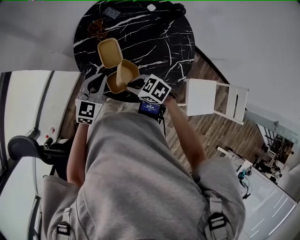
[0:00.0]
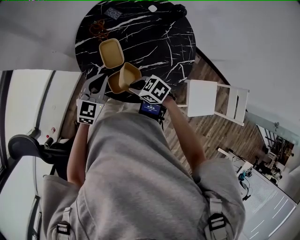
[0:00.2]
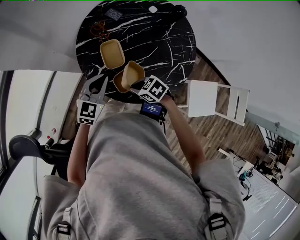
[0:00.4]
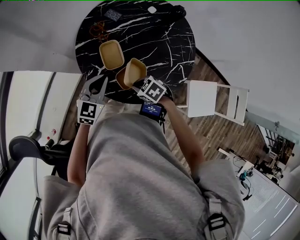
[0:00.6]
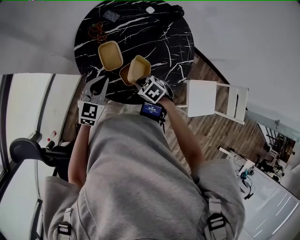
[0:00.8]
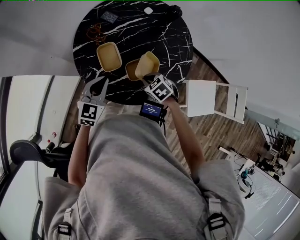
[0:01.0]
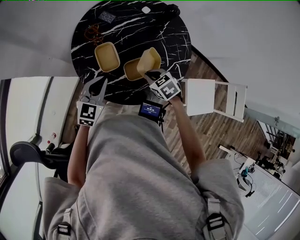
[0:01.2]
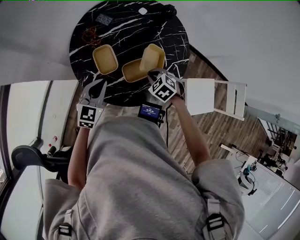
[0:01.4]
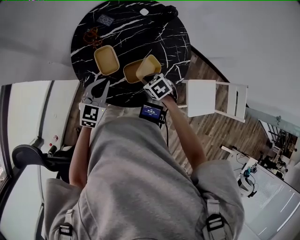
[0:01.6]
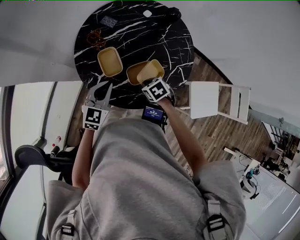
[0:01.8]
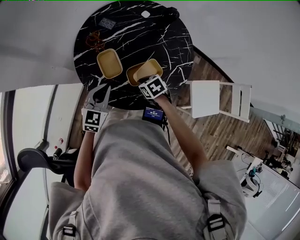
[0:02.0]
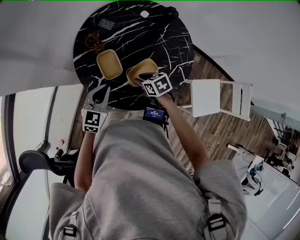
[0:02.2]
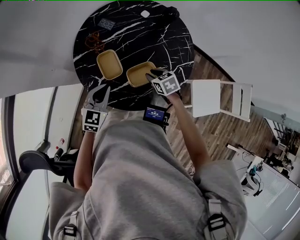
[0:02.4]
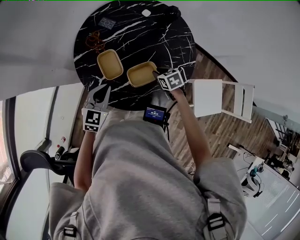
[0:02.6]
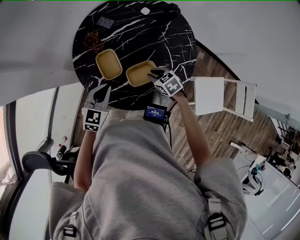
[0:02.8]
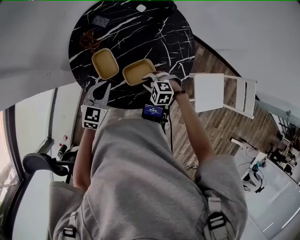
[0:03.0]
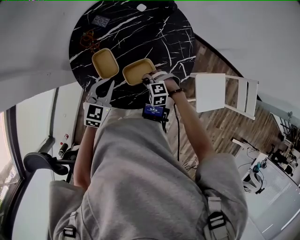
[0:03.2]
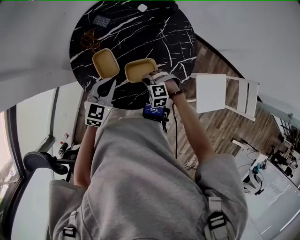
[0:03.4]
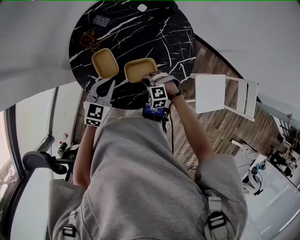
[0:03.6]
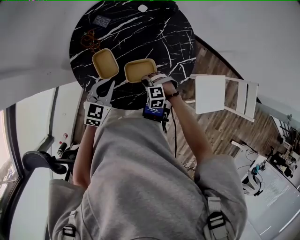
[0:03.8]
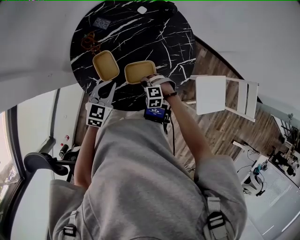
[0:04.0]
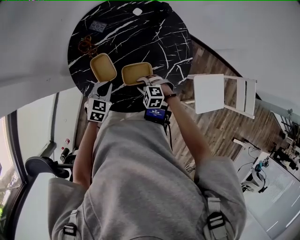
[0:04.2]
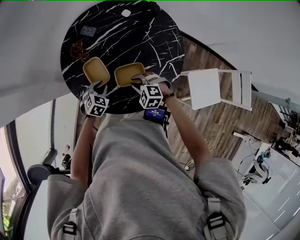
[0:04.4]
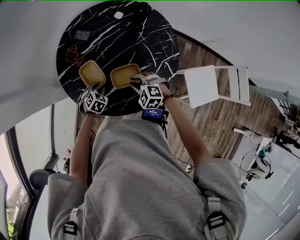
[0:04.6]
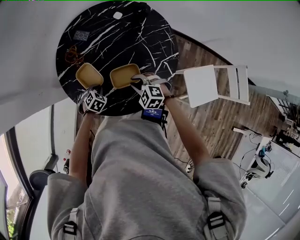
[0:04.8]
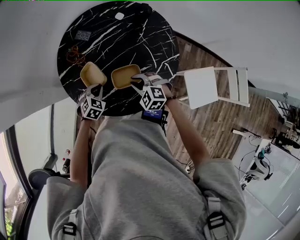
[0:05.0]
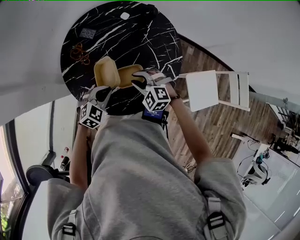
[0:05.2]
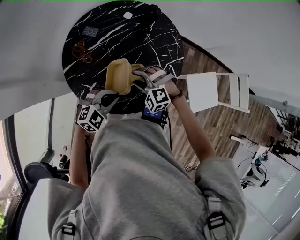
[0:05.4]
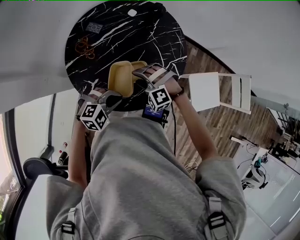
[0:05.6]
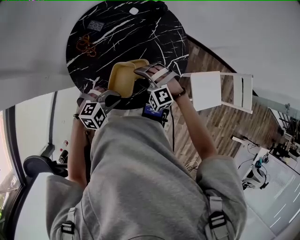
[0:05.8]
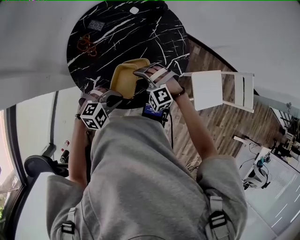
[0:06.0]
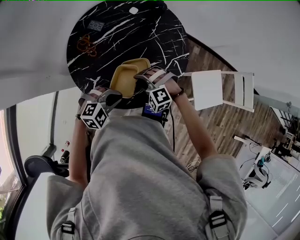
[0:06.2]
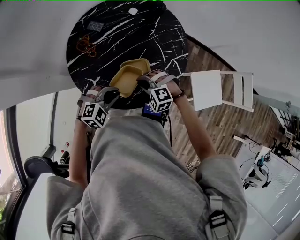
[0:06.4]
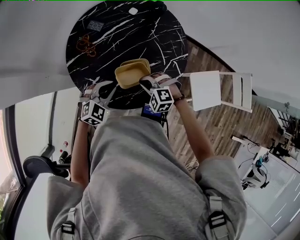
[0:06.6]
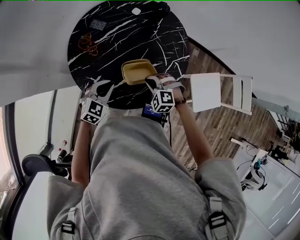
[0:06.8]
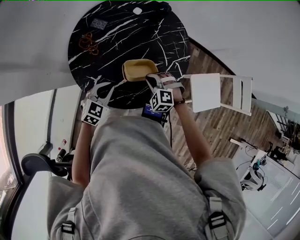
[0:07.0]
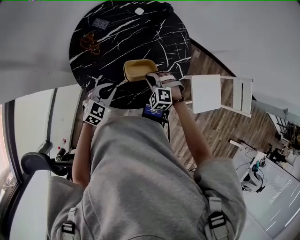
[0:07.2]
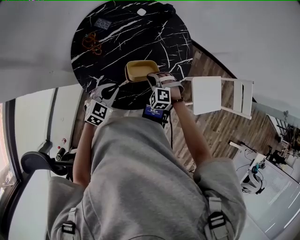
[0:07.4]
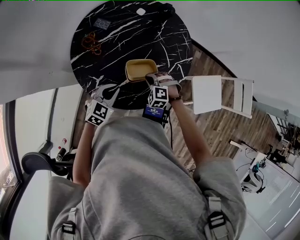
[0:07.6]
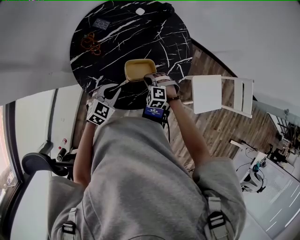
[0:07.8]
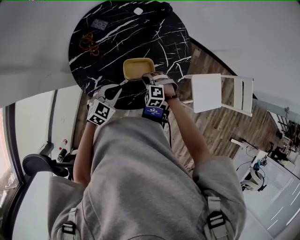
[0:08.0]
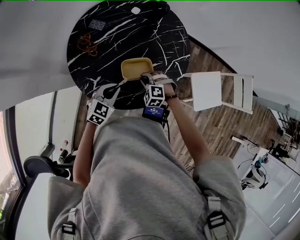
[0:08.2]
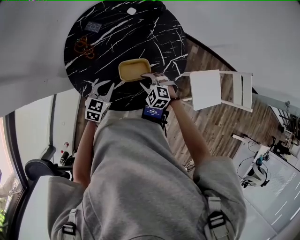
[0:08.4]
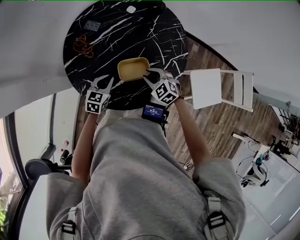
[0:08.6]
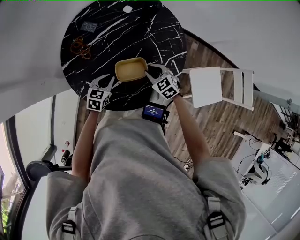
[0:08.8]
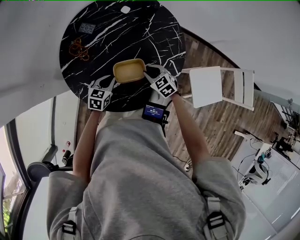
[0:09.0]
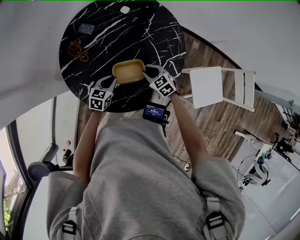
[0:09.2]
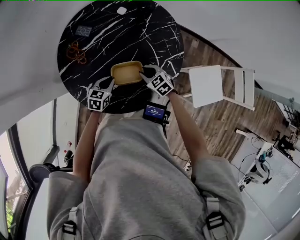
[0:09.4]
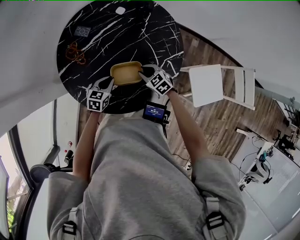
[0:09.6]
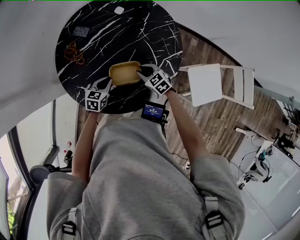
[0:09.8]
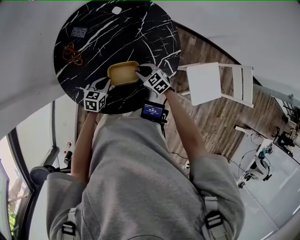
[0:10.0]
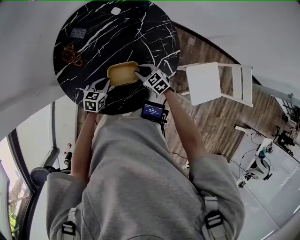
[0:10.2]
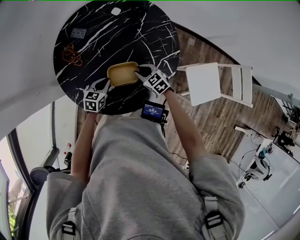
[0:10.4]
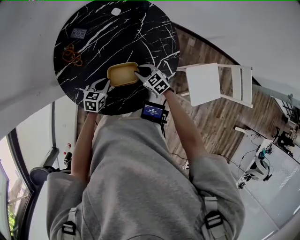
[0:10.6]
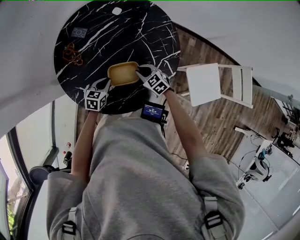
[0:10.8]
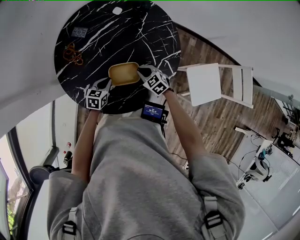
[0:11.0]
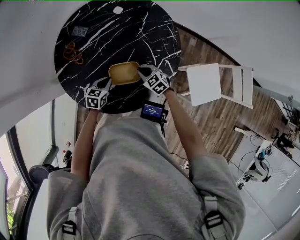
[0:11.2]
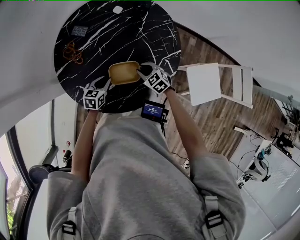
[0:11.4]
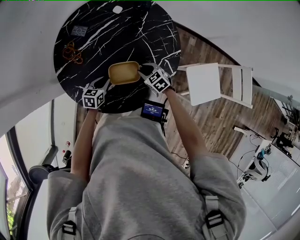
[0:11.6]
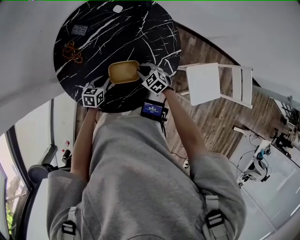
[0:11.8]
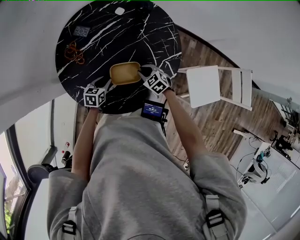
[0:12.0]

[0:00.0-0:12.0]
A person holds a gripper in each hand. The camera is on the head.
0:00.0 to 0:01.6: The right gripper shifts by roughly 15 cm, and changes its angle by approximately 30 degrees.
0:01.6 to 0:03.0: The right gripper swings left and right, roughly 10 cm each way, with 2 reversals, and twists about 40 degrees counterclockwise, seen from behind.
0:03.0 to 0:04.4: The left gripper moves downward, roughly 15 cm, rotates about 30 degrees, and opens up.
0:04.4 to 0:06.0: The right gripper goes roughly 5 cm upward, changes its angle by approximately 30 degrees, and opens up. Meanwhile the left gripper shifts by about 20 cm, and changes its angle by about 50 degrees.
0:06.0 to 0:07.6: The right gripper is displaced downward by about 10 cm, turns by roughly 30 degrees, and closes its fingers. Meanwhile the left gripper is displaced forward by approximately 5 cm, and changes its angle by approximately 40 degrees.
0:07.6 to 0:09.0: The left gripper goes about 10 cm downward and forward, and turns by some 30 degrees, while the right gripper is displaced to the right and forward by approximately 10 cm, rolls clockwise, seen from behind, by roughly 50 degrees, and opens up.
0:09.0 to 0:10.4: The grippers make only small movements.
0:10.4 to 0:12.0: The left gripper opens its fingers.

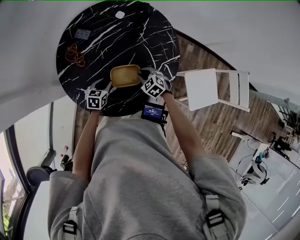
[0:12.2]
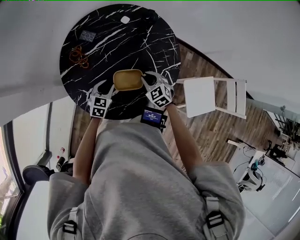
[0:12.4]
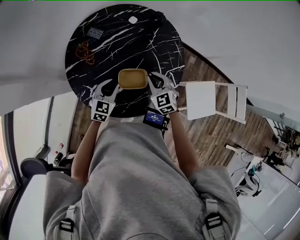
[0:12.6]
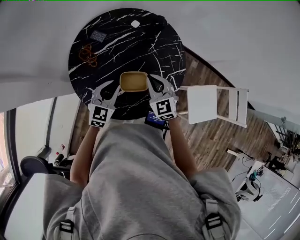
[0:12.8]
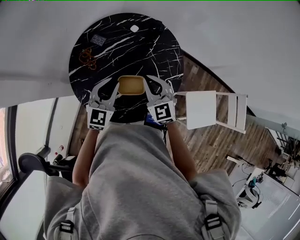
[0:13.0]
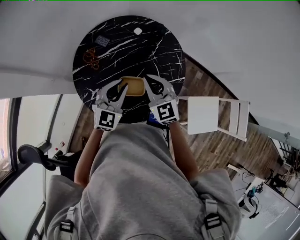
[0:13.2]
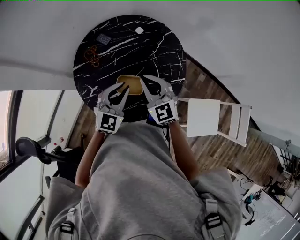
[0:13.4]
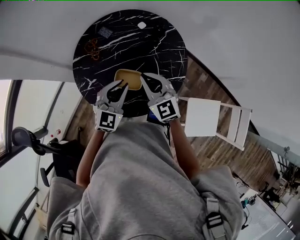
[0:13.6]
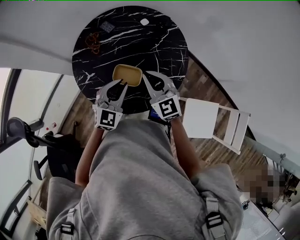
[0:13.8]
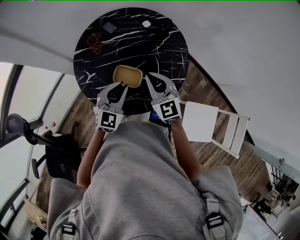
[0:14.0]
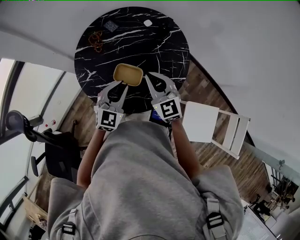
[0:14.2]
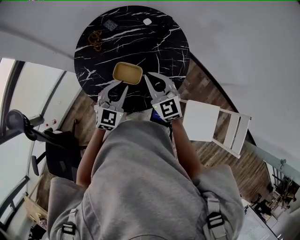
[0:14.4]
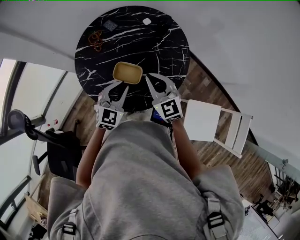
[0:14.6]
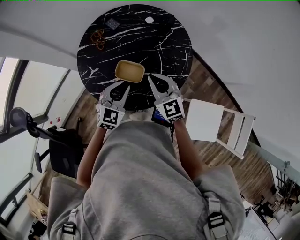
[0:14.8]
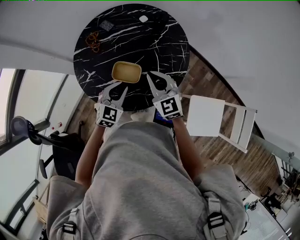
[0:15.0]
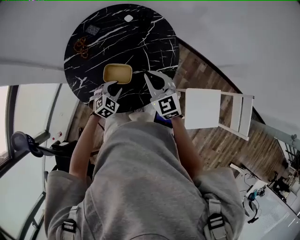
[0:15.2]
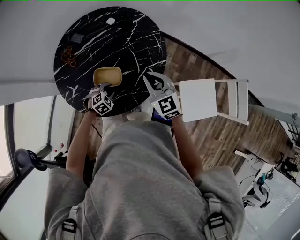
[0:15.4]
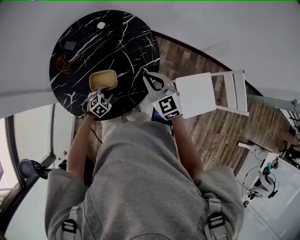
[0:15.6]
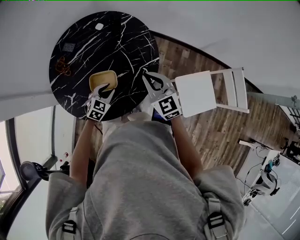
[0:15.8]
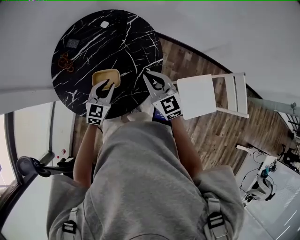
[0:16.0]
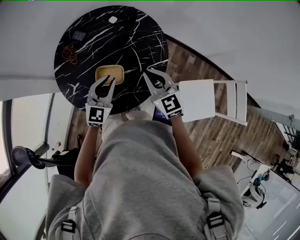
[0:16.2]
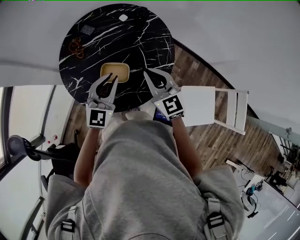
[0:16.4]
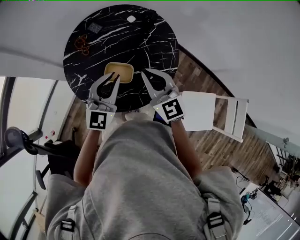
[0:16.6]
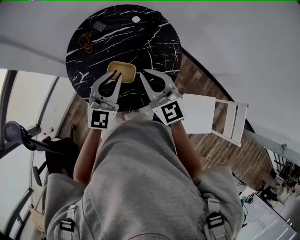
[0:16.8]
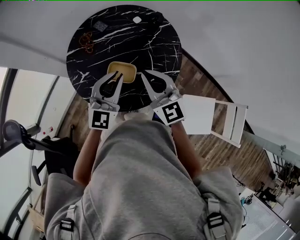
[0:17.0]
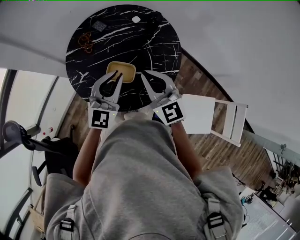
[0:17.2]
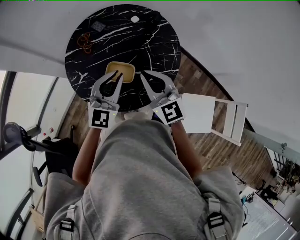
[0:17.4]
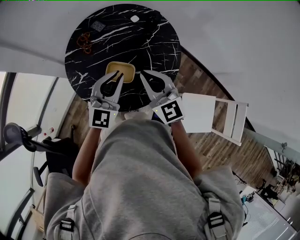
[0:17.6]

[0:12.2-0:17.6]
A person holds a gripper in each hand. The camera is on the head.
0:12.2 to 0:13.6: The grippers both shift upward by approximately 30 cm. The left gripper swivels approximately 40 degrees; the right gripper points its fingers approximately 40 degrees further upward.
0:13.6 to 0:15.0: The left gripper goes roughly 10 cm downward. Meanwhile the right gripper ends up about 5 cm from where it was.
0:15.0 to 0:16.2: The right gripper is displaced to the right by roughly 5 cm, while the left gripper reaches roughly 20 cm downward, then returns.
0:16.2 to 0:17.6: The left gripper is displaced upward by approximately 10 cm. Meanwhile the right gripper moves to the left and upward, roughly 10 cm.

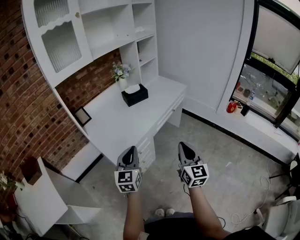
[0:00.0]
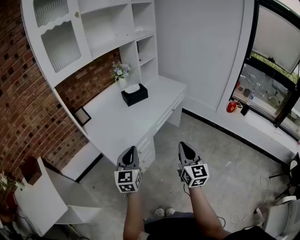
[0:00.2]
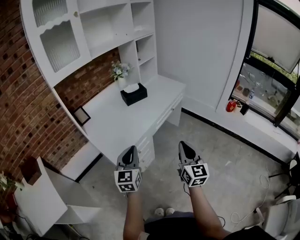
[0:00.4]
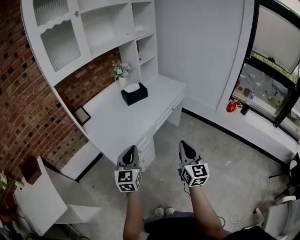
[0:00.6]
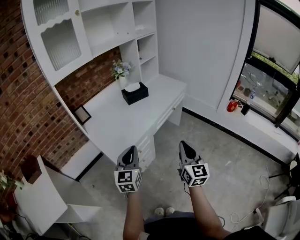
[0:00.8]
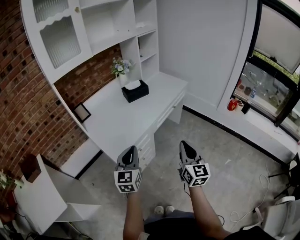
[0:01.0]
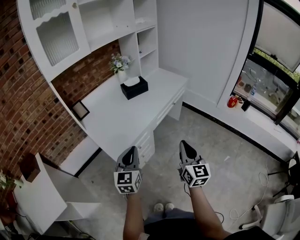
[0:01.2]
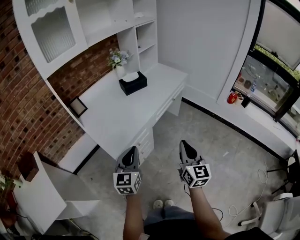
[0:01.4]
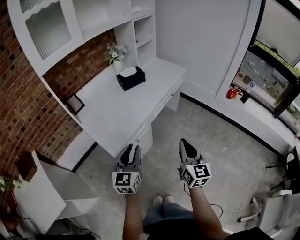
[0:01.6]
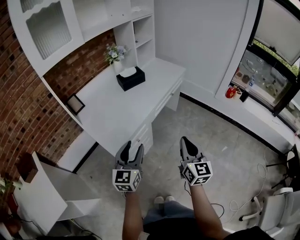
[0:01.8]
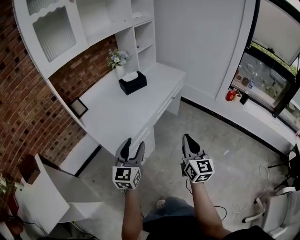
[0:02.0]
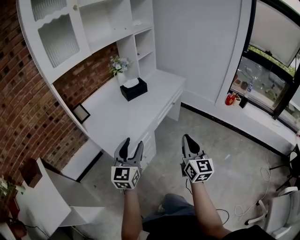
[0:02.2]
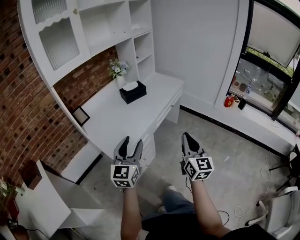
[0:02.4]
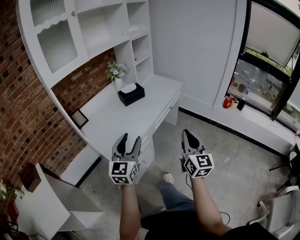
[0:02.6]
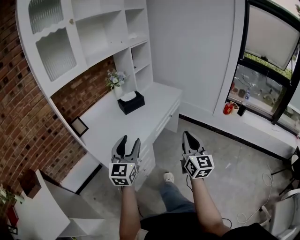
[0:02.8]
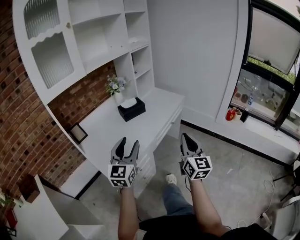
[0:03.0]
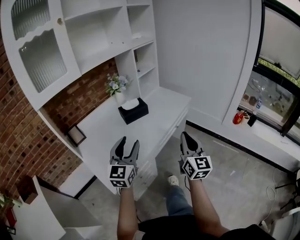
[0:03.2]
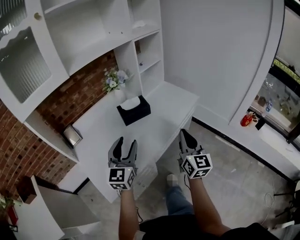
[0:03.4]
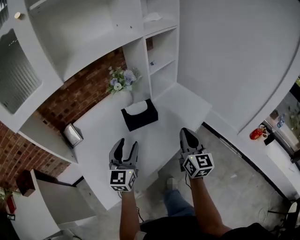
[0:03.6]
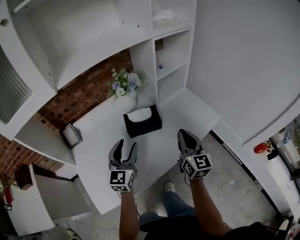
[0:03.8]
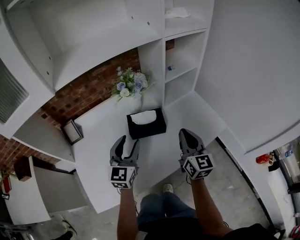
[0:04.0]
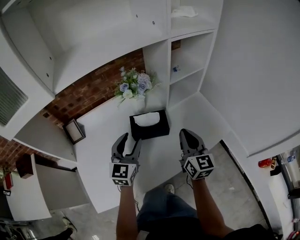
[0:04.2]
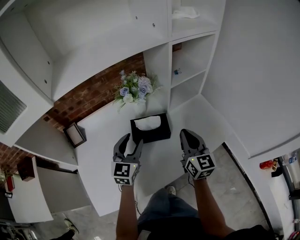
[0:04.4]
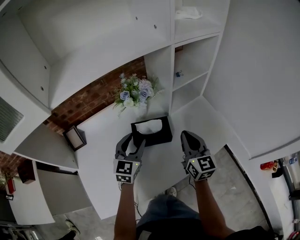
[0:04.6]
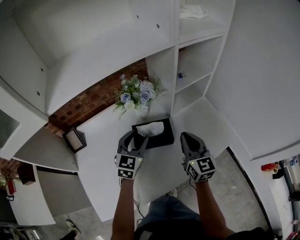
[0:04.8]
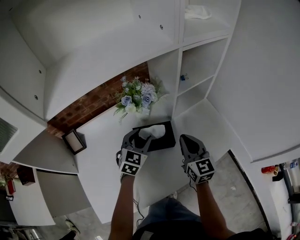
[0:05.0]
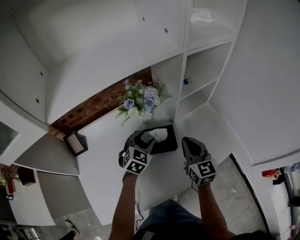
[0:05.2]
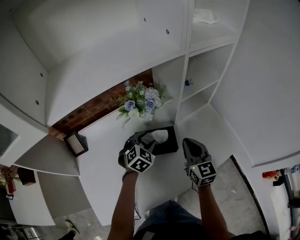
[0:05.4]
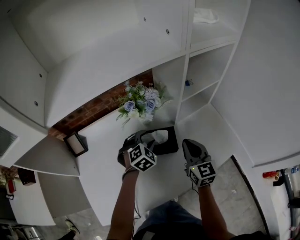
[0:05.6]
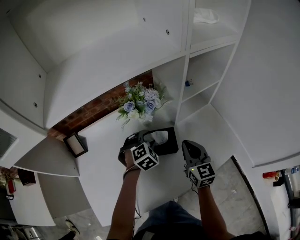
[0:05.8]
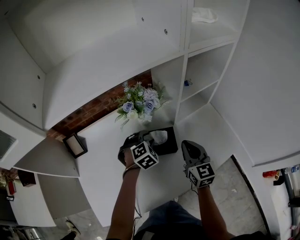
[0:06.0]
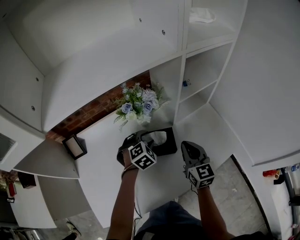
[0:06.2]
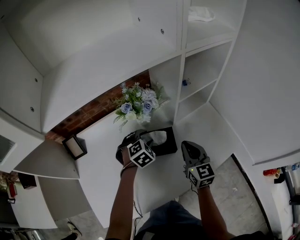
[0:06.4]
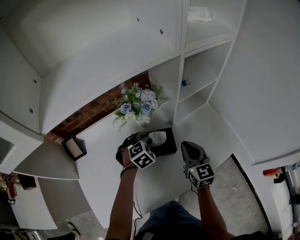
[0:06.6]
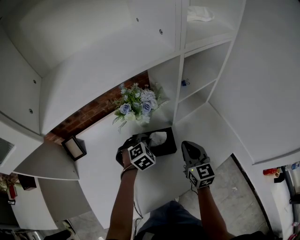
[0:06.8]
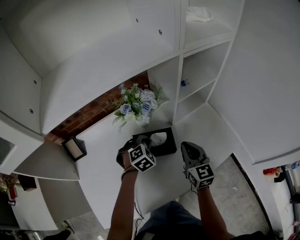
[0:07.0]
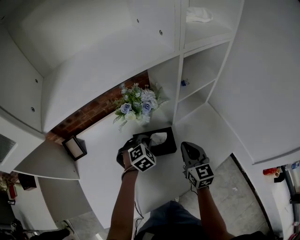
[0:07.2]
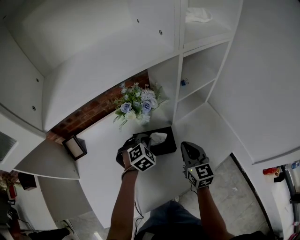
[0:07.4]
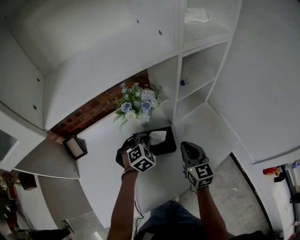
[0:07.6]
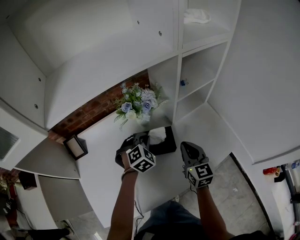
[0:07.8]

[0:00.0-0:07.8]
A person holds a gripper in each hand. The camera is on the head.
0:00.0 to 0:01.6: The grippers stay close to where they were, moving slightly.
0:01.6 to 0:03.2: The grippers both shift forward by some 20 cm. The left gripper opens its fingers.
0:03.2 to 0:04.6: The grippers both shift forward by about 40 cm. The left gripper swivels approximately 20 degrees, while the right gripper changes its angle by about 30 degrees.
0:04.6 to 0:06.2: The right gripper shifts by approximately 5 cm; the left gripper moves downward and forward, some 15 cm, and points its fingers about 40 degrees further downward.
0:06.2 to 0:07.8: The left gripper closes.
